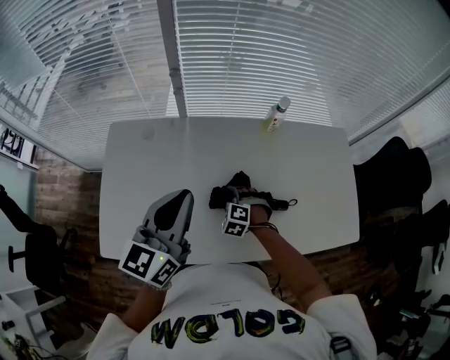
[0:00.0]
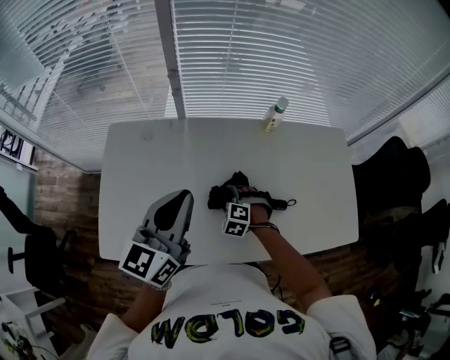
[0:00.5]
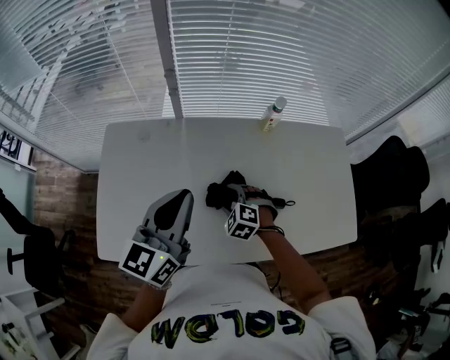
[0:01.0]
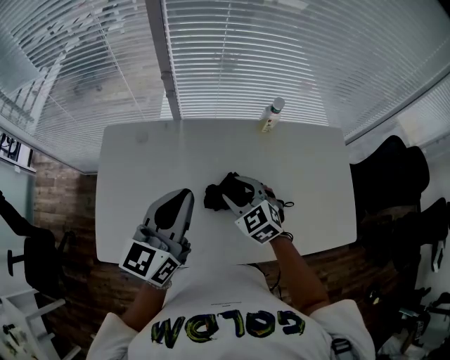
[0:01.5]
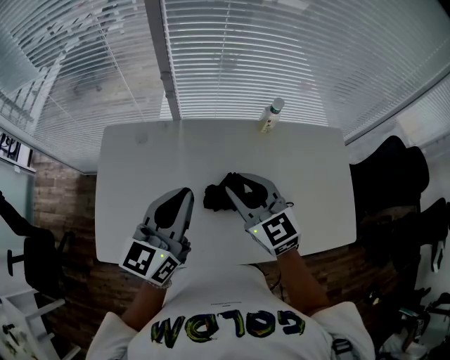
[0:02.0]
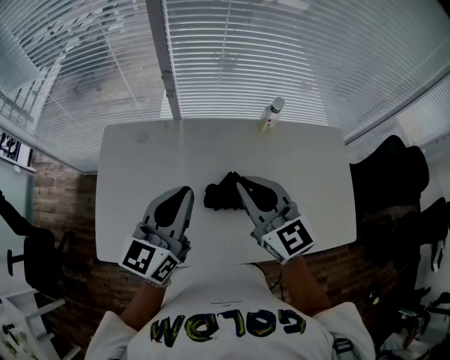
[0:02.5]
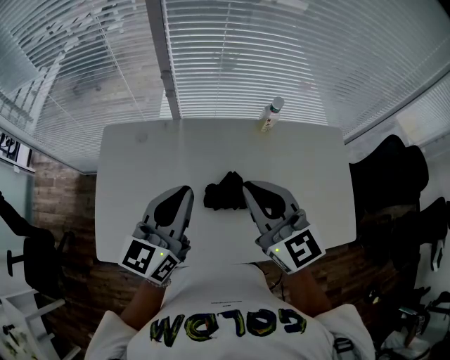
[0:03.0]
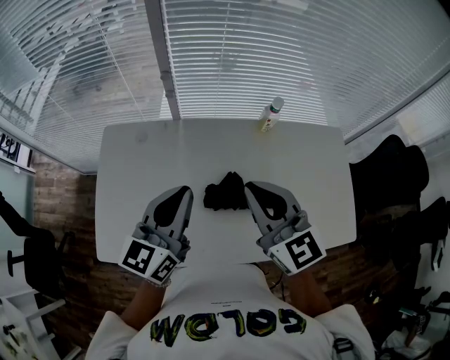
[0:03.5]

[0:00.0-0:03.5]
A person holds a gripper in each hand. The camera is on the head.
0:00.0 to 0:02.0: The right gripper travels upward by approximately 30 cm, tilts its fingers approximately 40 degrees upward, and closes its fingers.
0:02.0 to 0:03.5: The right gripper heads upward, covering some 10 cm, and closes up.

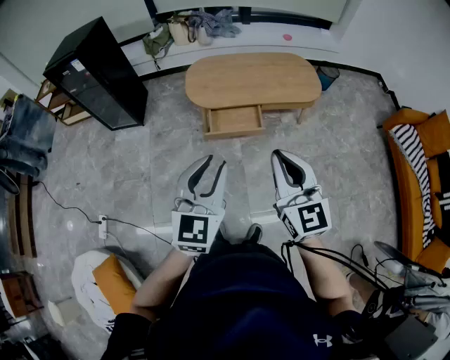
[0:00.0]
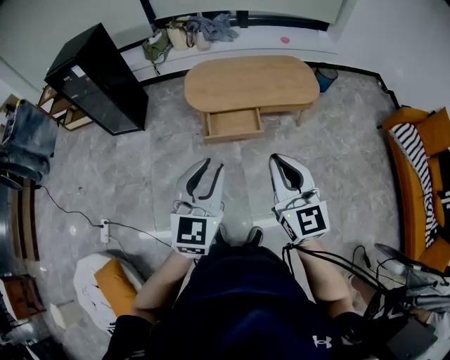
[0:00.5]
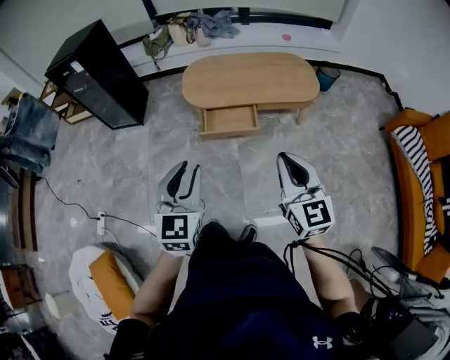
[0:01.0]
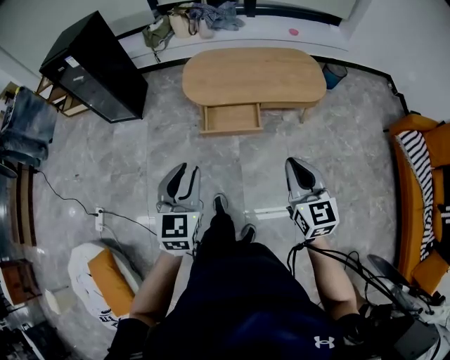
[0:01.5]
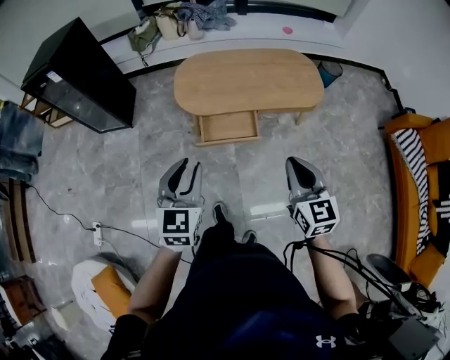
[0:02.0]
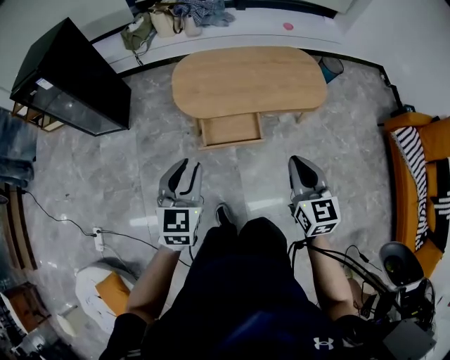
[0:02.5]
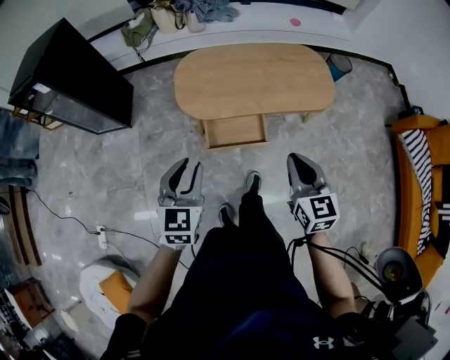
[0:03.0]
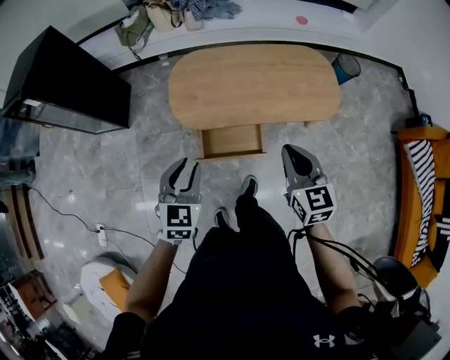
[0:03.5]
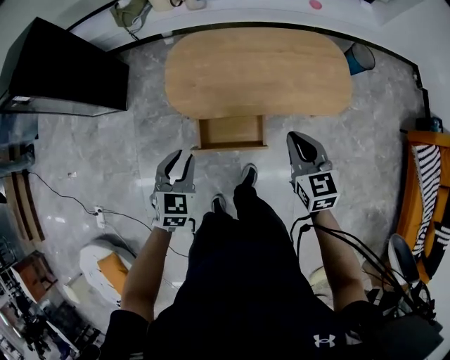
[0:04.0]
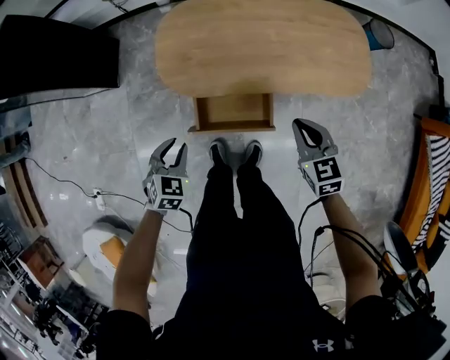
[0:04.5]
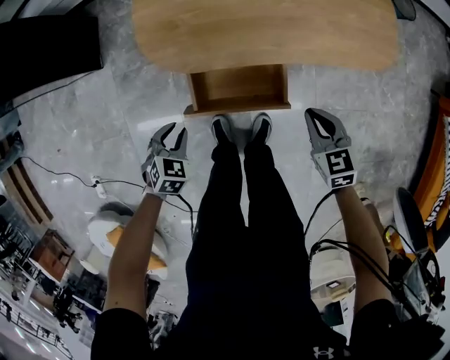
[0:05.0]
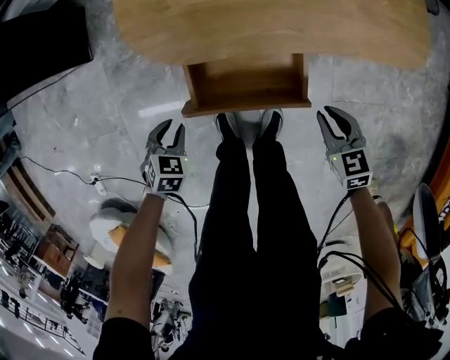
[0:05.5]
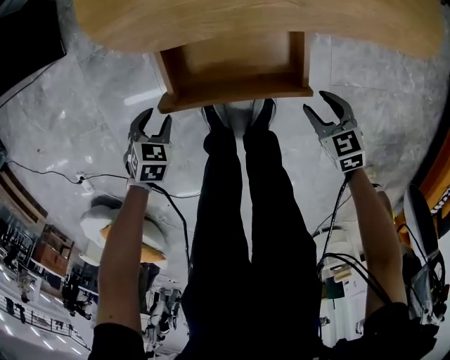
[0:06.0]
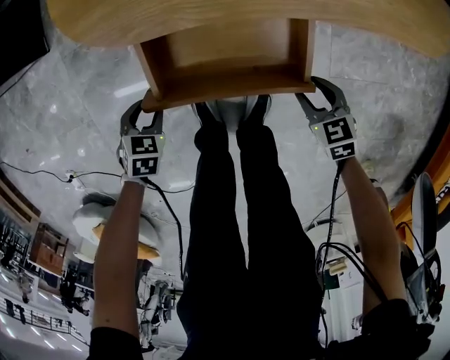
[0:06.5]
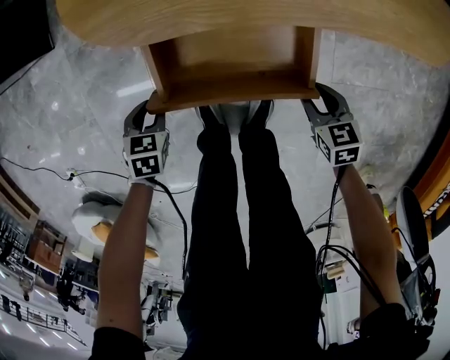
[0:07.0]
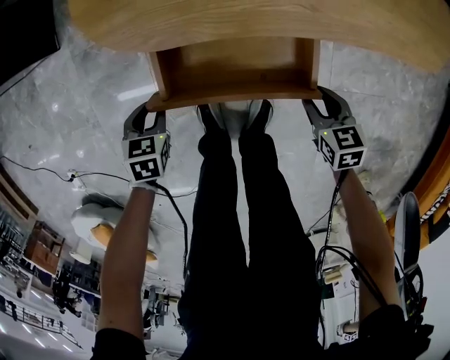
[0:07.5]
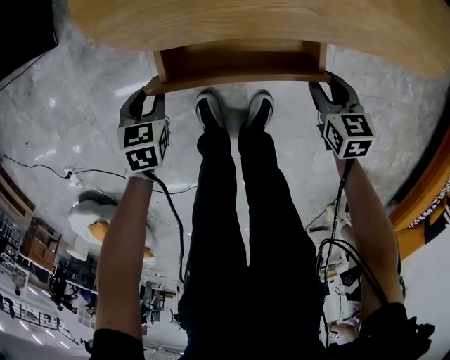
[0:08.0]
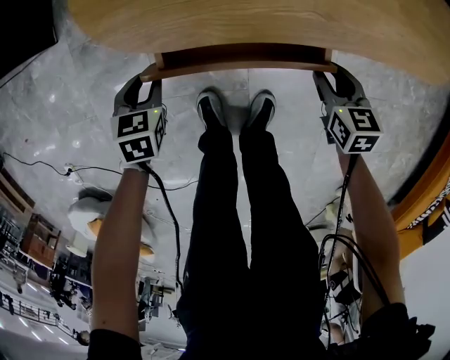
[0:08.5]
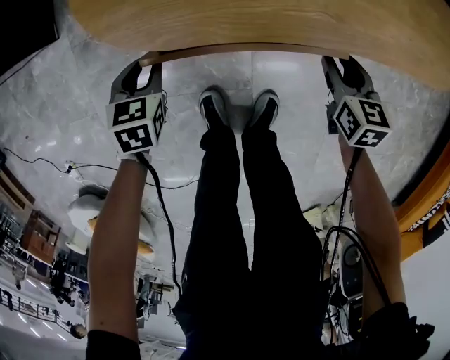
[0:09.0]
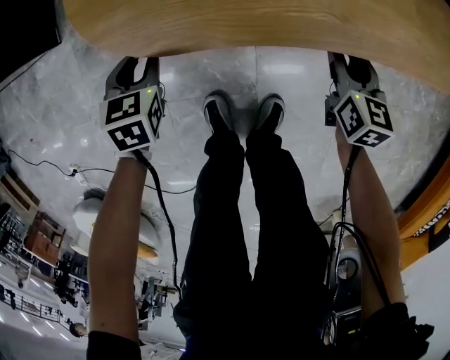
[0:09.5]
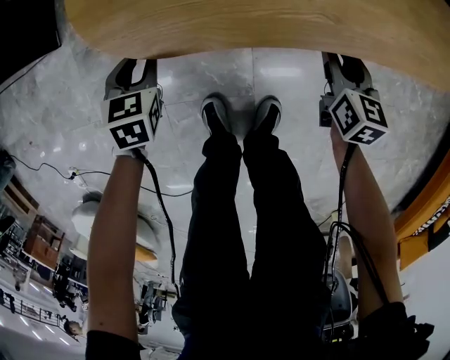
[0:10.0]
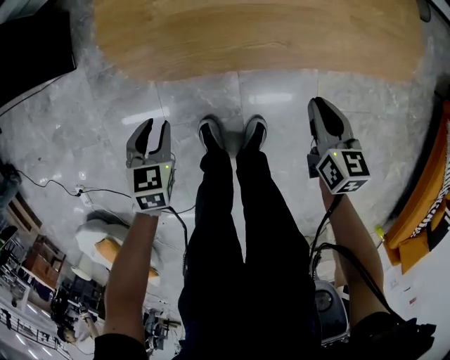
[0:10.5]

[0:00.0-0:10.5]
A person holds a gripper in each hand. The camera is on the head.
0:00.0 to 0:02.0: The right gripper goes approximately 20 cm forward, downward and to the right. The left gripper travels forward and downward by about 20 cm.
0:02.0 to 0:04.0: Both grippers move forward and downward, roughly 35 cm. The left gripper swivels roughly 20 degrees.
0:04.0 to 0:06.5: The two grippers go some 50 cm downward. The right gripper changes its angle by about 30 degrees, and opens up. Meanwhile the left gripper tips its fingers downward by some 30 degrees.
0:06.5 to 0:08.5: The left gripper shifts by approximately 15 cm. Meanwhile the right gripper moves about 15 cm.
0:08.5 to 0:10.5: Both grippers move upward, about 15 cm. The right gripper closes.

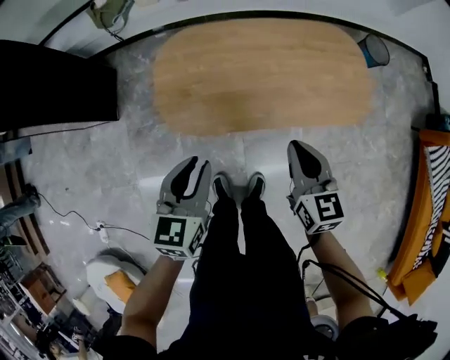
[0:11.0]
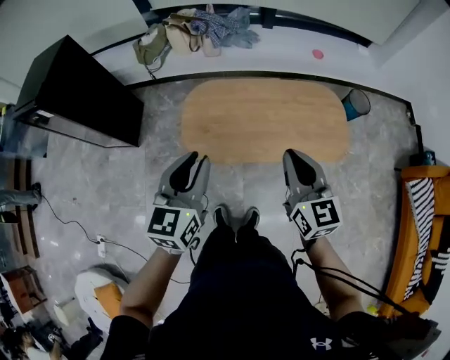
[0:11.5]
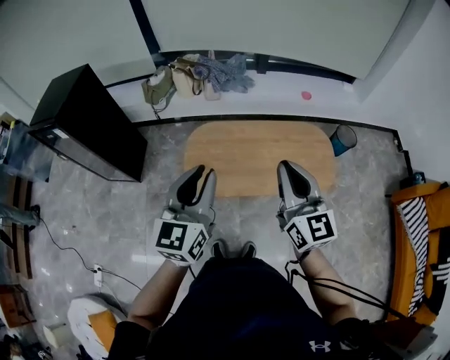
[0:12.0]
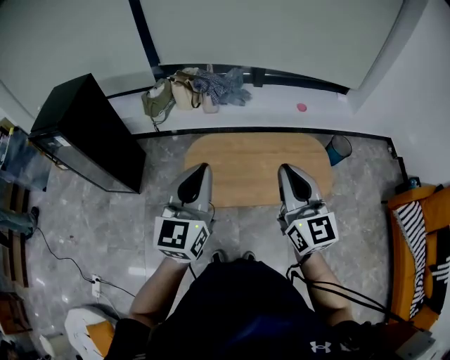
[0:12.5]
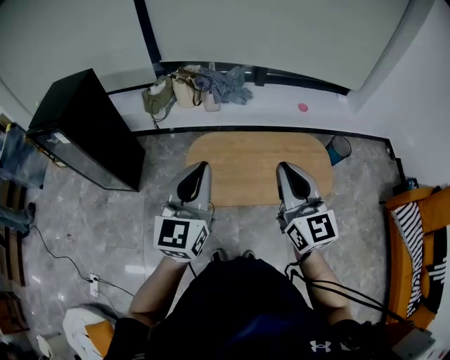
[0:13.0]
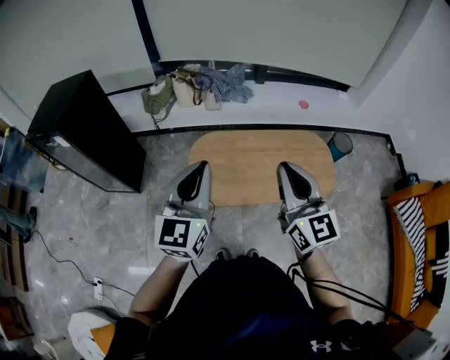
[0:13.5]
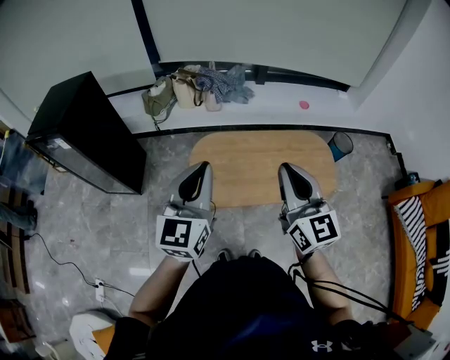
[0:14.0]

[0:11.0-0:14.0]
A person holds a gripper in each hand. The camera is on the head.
0:11.0 to 0:12.5: The two grippers go roughly 35 cm upward. The left gripper points its fingers some 30 degrees further upward, and closes, while the right gripper tips its fingers upward by approximately 30 degrees.
0:12.5 to 0:14.0: The two grippers go some 5 cm to the left.

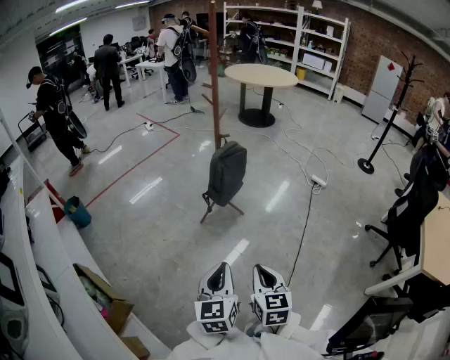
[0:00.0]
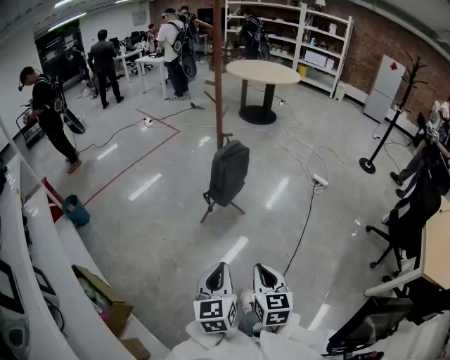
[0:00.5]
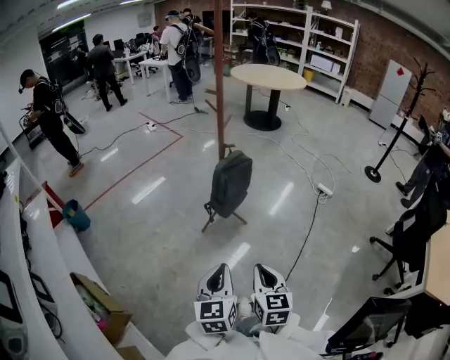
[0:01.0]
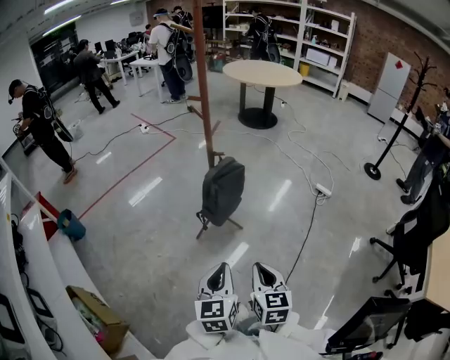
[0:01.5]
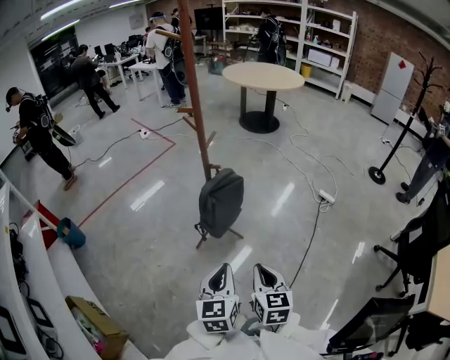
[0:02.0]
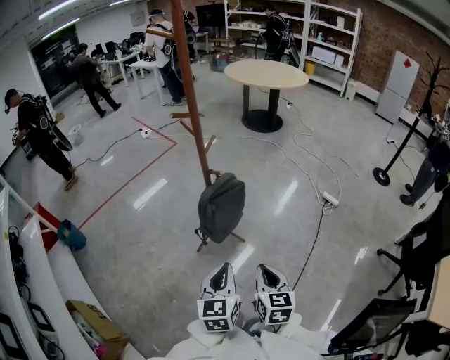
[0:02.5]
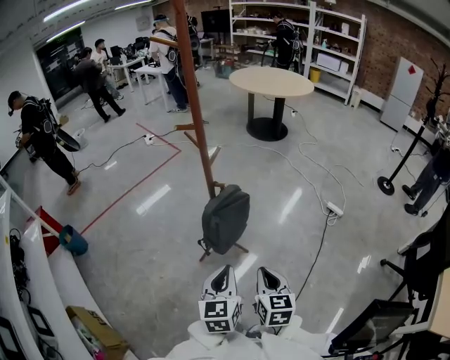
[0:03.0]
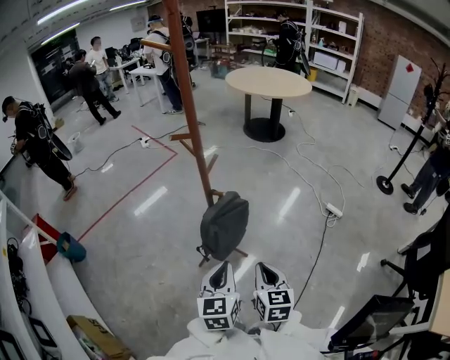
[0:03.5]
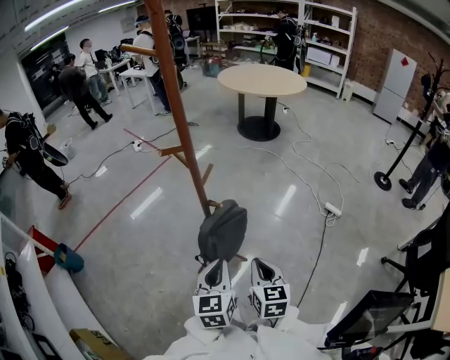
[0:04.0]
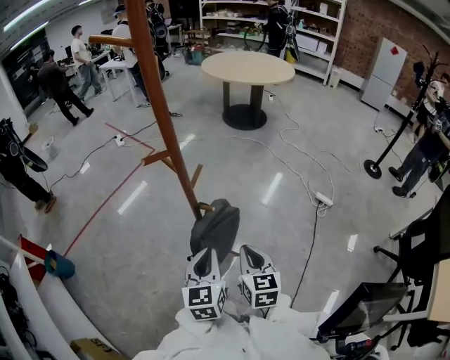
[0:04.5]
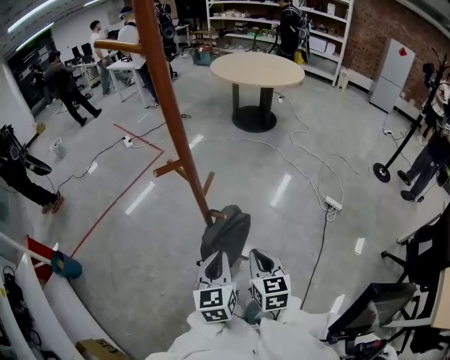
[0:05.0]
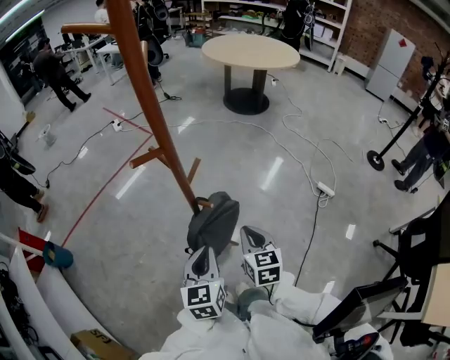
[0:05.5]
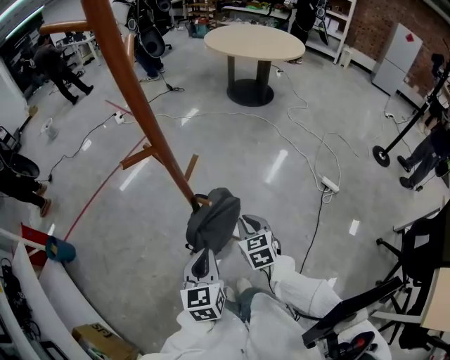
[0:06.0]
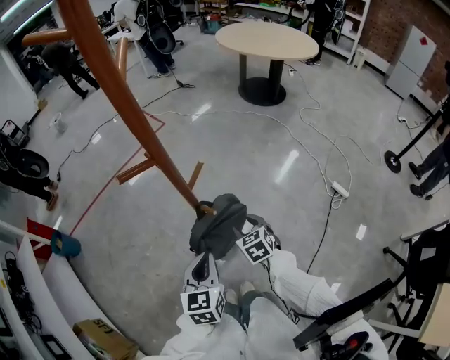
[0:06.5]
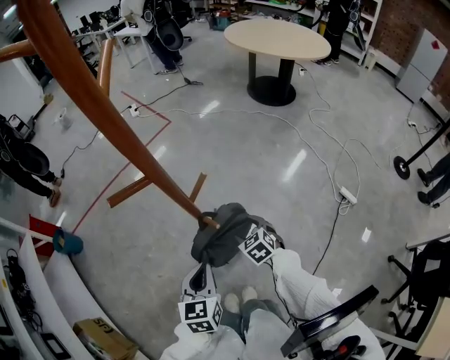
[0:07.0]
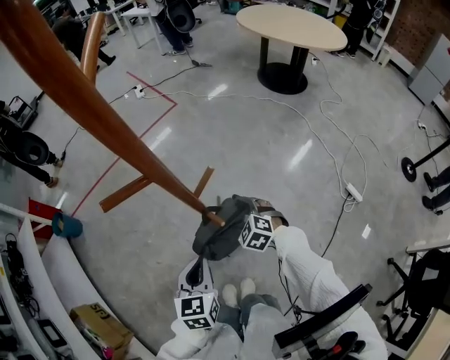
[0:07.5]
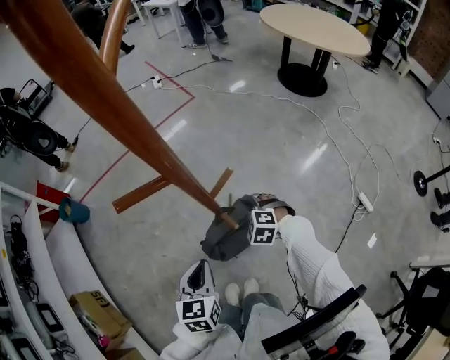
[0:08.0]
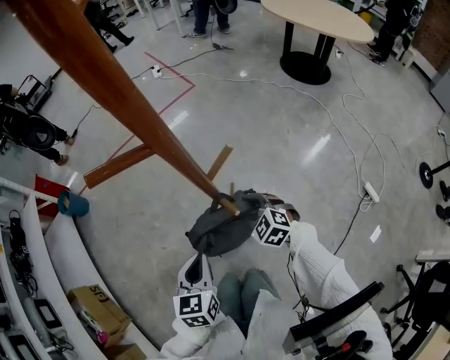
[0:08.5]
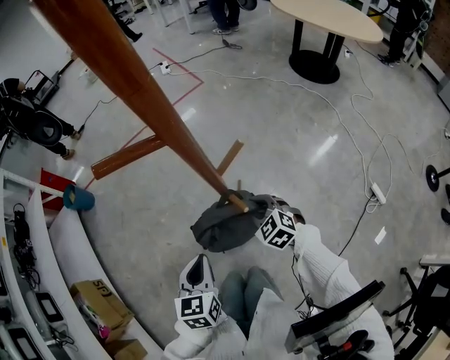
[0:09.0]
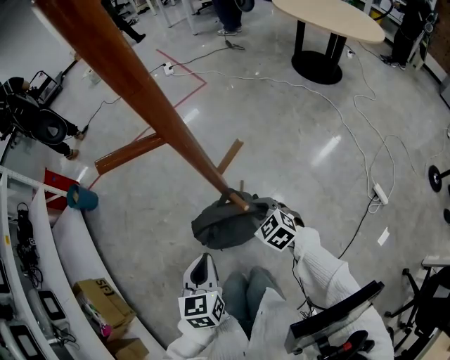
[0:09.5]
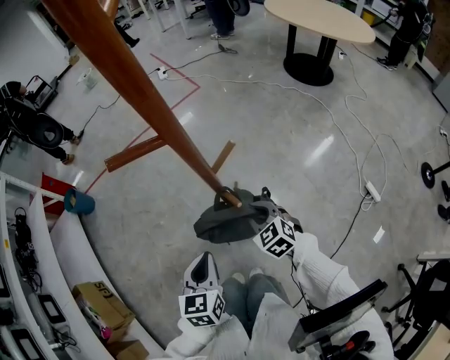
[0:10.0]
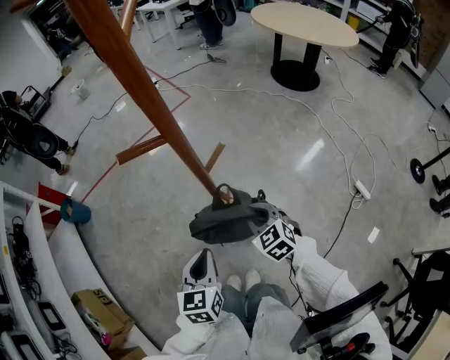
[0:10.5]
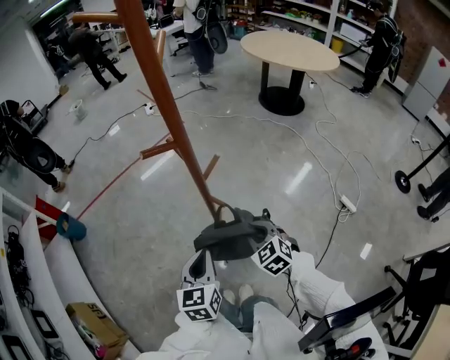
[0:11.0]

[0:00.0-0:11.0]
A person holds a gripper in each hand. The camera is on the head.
0:00.0 to 0:02.0: Both grippers move forward, roughly 25 cm.
0:02.0 to 0:03.5: The grippers both shift forward by approximately 15 cm.
0:03.5 to 0:05.5: Both grippers move forward, roughly 15 cm.
0:05.5 to 0:07.5: The right gripper heads downward, covering approximately 15 cm, turns by about 70 degrees, and opens up. Meanwhile the left gripper shifts approximately 5 cm downward.
0:07.5 to 0:09.0: The right gripper closes up. Meanwhile the left gripper is displaced to the left by about 5 cm.
0:09.0 to 0:11.0: The left gripper travels upward by about 10 cm, while the right gripper travels upward and backward by some 15 cm.
